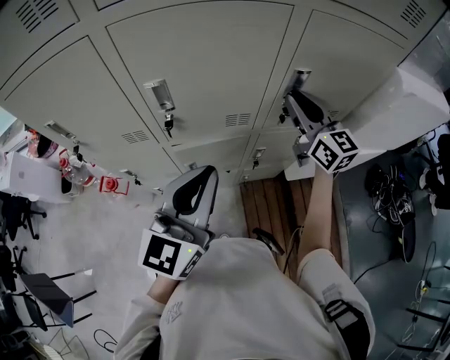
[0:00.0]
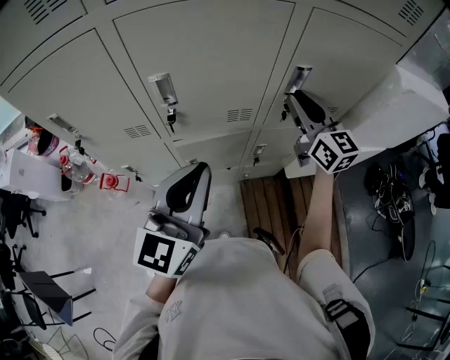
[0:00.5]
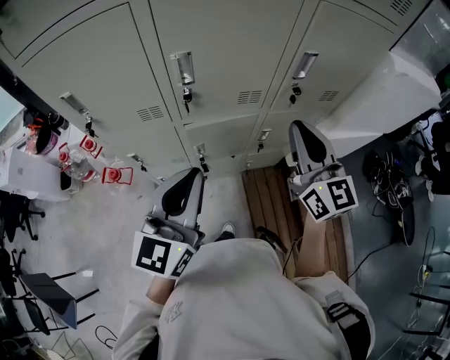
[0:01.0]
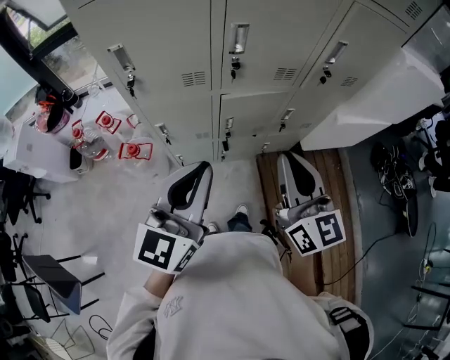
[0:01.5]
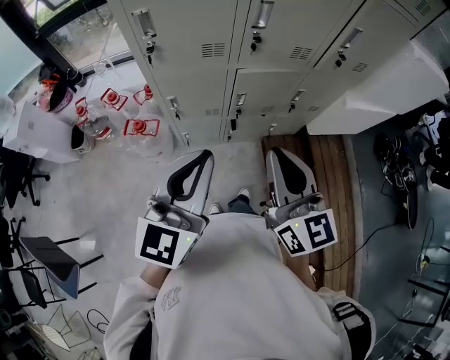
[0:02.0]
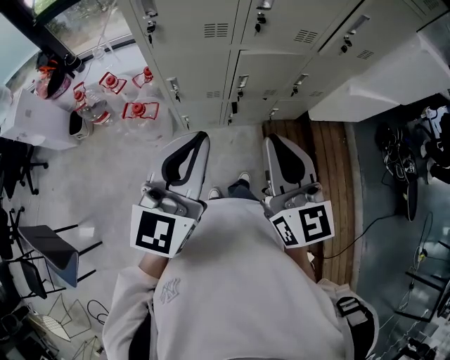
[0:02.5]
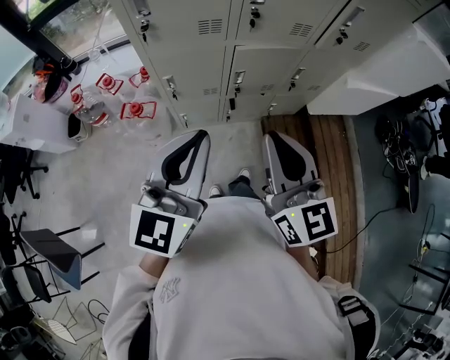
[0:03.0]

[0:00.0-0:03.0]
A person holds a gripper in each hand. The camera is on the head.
0:00.0 to 0:01.5: The left gripper shifts some 25 cm to the left and backward. Meanwhile the right gripper goes about 40 cm backward and to the left.
0:01.5 to 0:03.0: The left gripper shifts some 5 cm backward; the right gripper travels backward and to the left by roughly 10 cm.

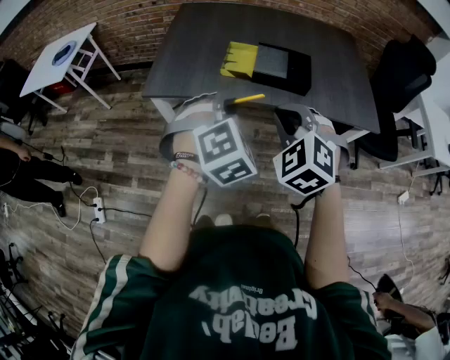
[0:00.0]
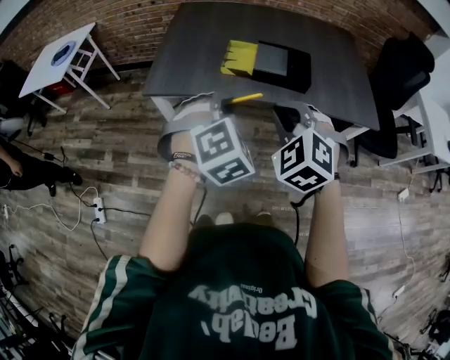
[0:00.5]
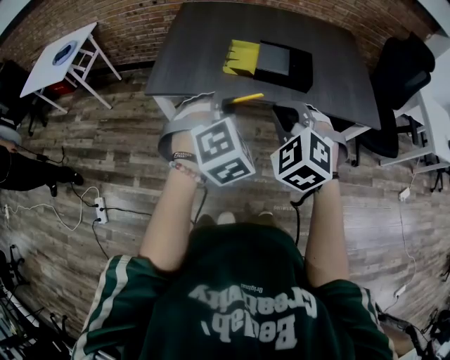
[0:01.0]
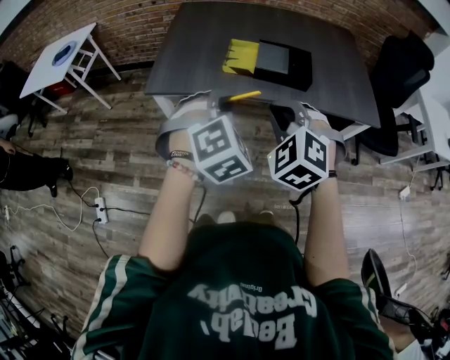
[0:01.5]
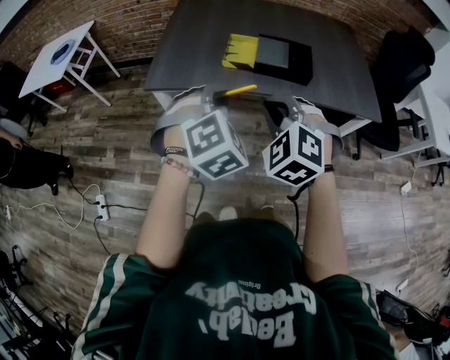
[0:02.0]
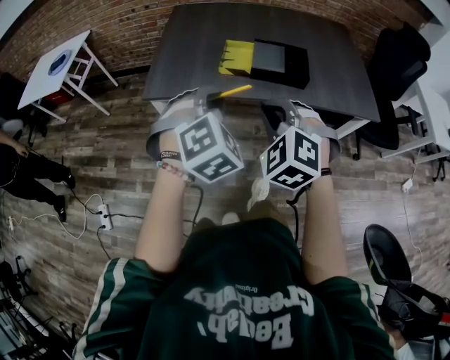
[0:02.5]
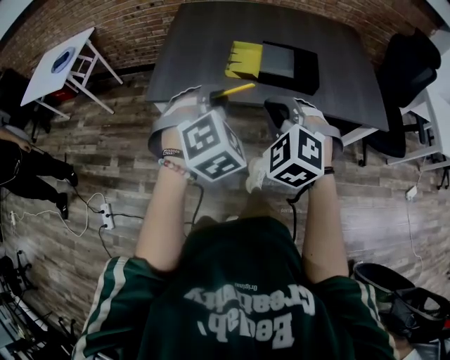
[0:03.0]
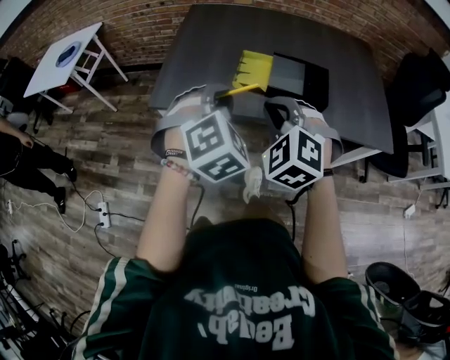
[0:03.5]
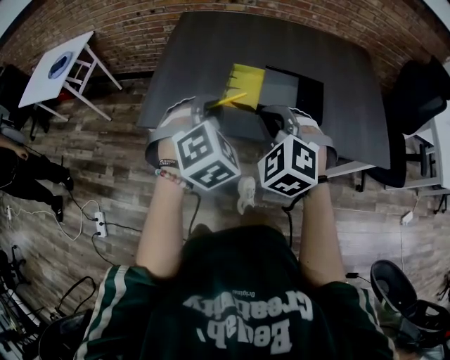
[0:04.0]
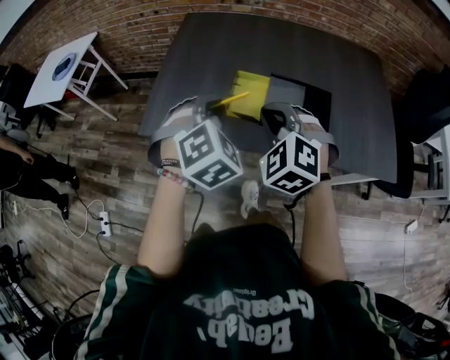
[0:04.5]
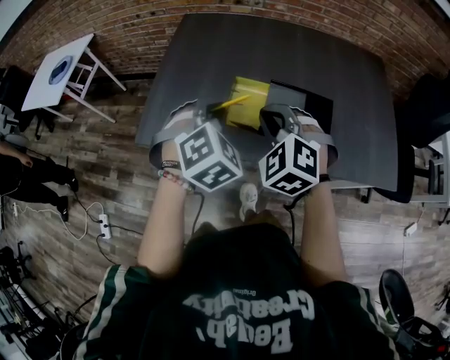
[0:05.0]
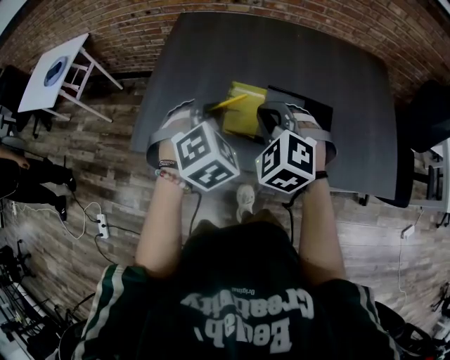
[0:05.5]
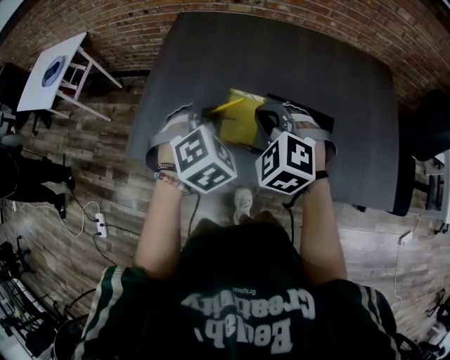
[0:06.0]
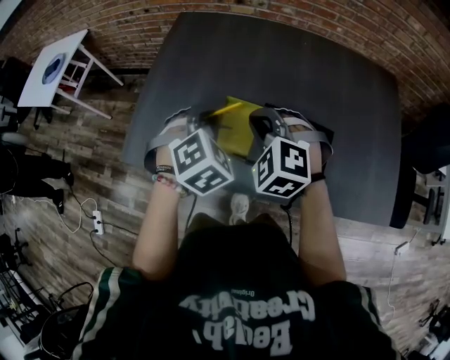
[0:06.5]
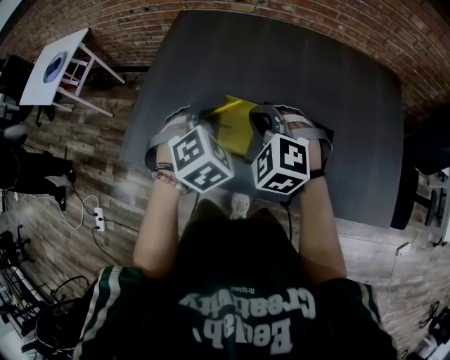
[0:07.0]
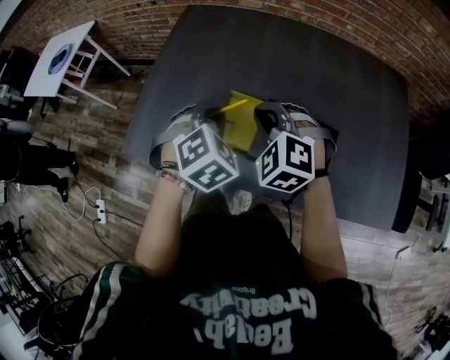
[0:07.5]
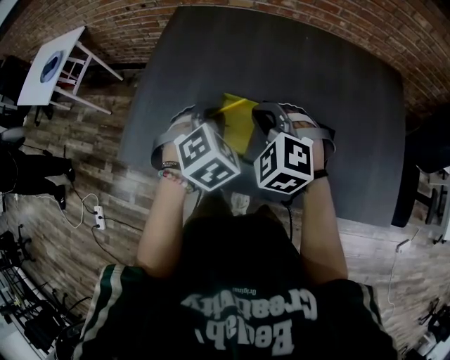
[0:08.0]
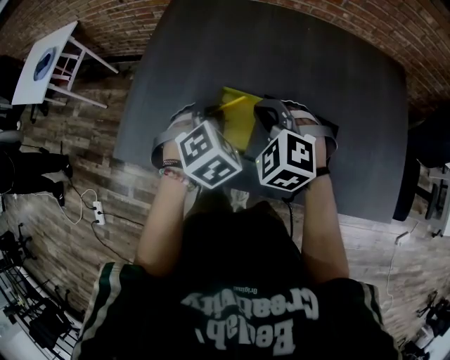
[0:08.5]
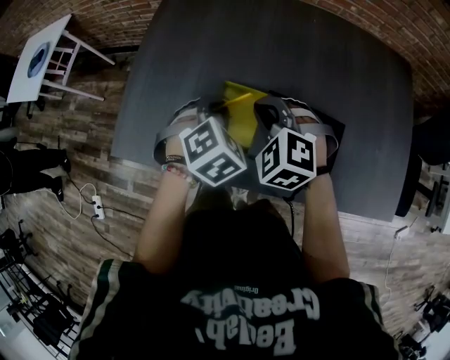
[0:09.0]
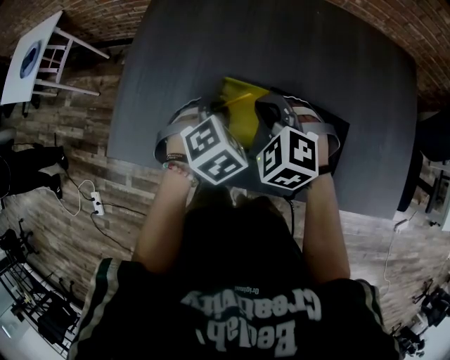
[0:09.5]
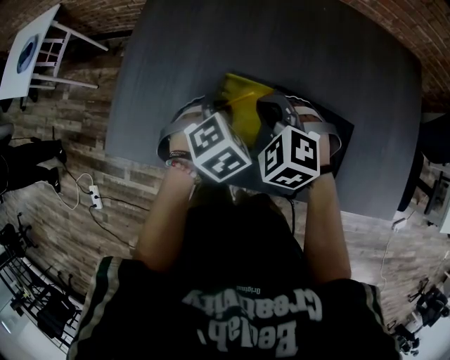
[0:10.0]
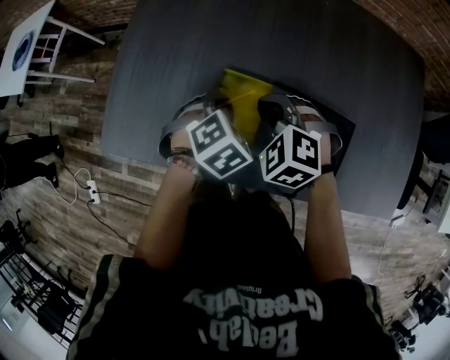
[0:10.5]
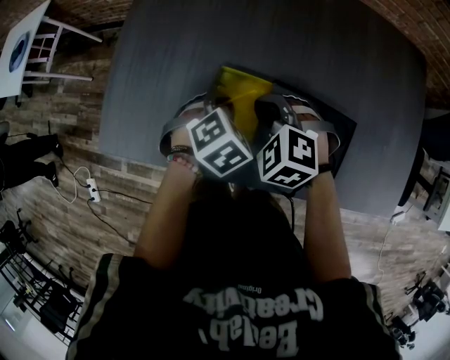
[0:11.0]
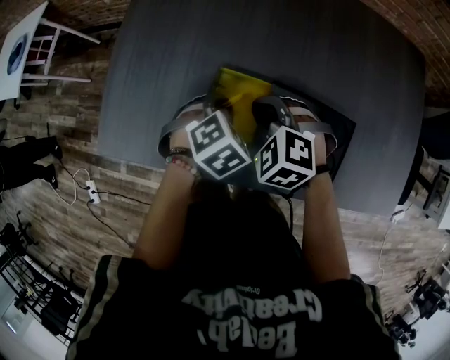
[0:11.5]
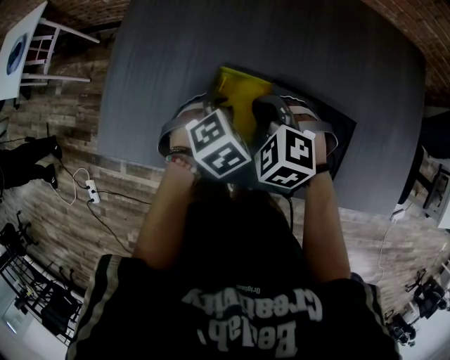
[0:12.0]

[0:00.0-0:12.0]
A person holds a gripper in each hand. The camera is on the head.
0:00.0 to 0:02.0: There are only small adjustments of the grippers.
0:02.0 to 0:04.0: The two grippers go some 20 cm forward.
0:04.0 to 0:06.0: The grippers both shift forward by roughly 20 cm.
0:06.0 to 0:08.0: Both grippers travel together forward, approximately 5 cm.
0:08.0 to 0:10.0: Both grippers move downward, some 10 cm.
0:10.0 to 0:12.0: There are only small adjustments of the grippers.

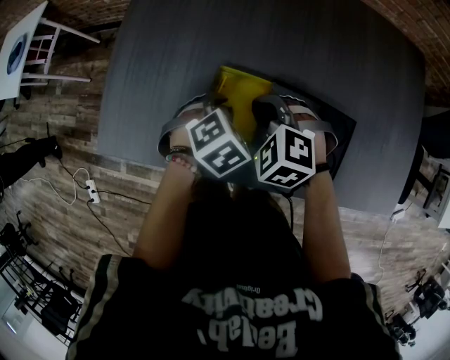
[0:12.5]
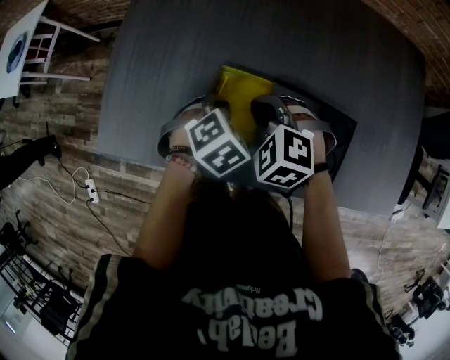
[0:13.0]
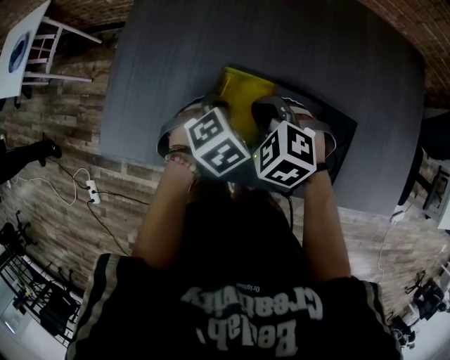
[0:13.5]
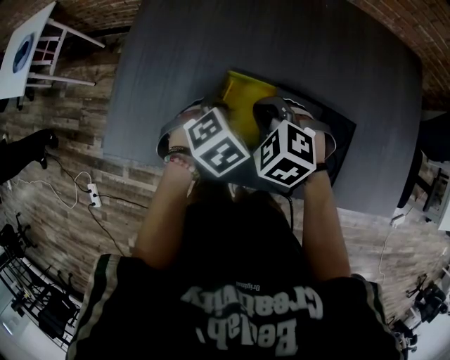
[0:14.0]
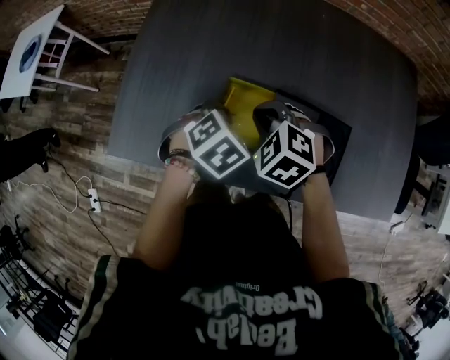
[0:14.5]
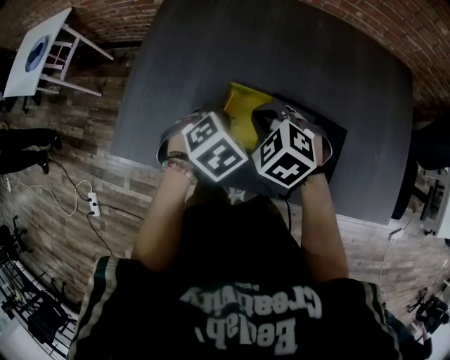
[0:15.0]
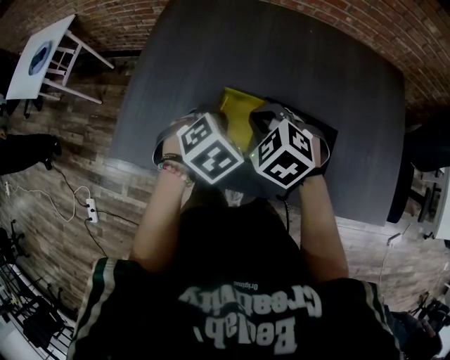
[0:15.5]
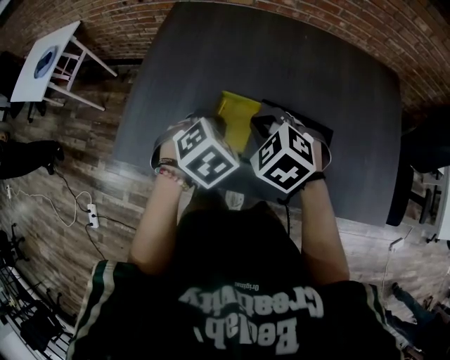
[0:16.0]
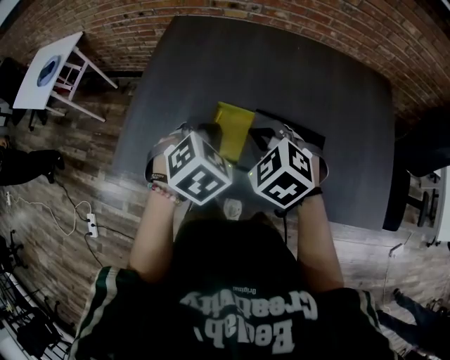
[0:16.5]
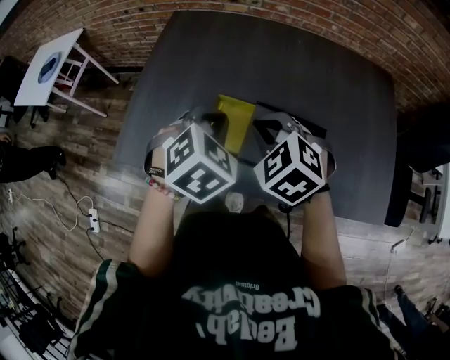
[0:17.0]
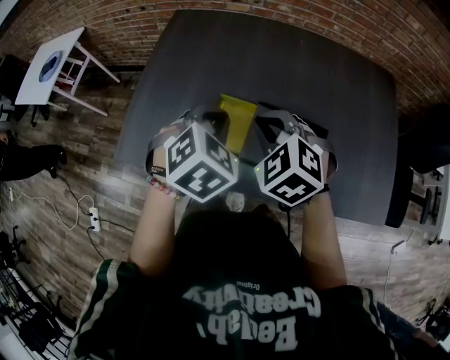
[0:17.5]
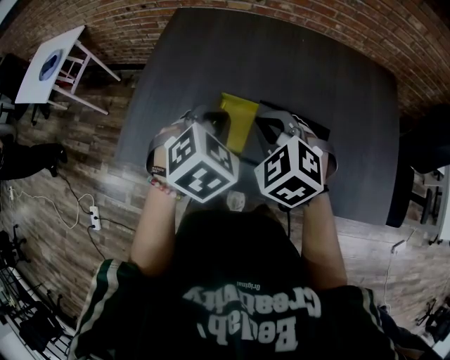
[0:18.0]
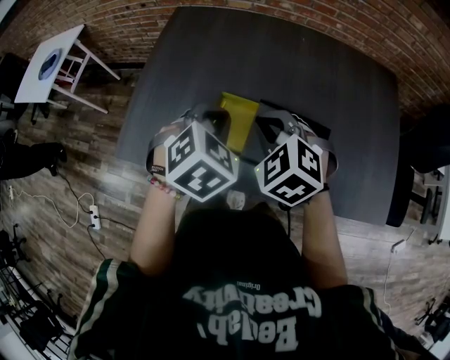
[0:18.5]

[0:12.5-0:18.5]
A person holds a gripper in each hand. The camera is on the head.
0:12.5 to 0:14.5: The left gripper moves roughly 5 cm.
0:14.5 to 0:16.5: The two grippers go roughly 15 cm upward and backward.
0:16.5 to 0:18.5: There are only small adjustments of the grippers.

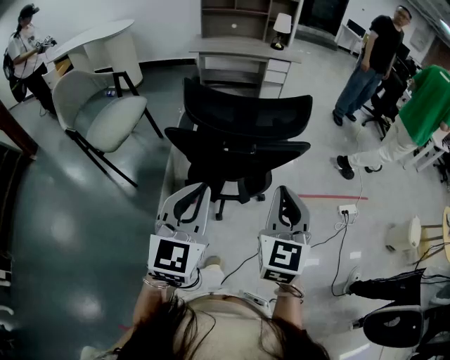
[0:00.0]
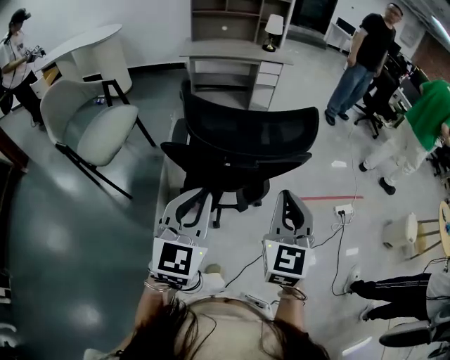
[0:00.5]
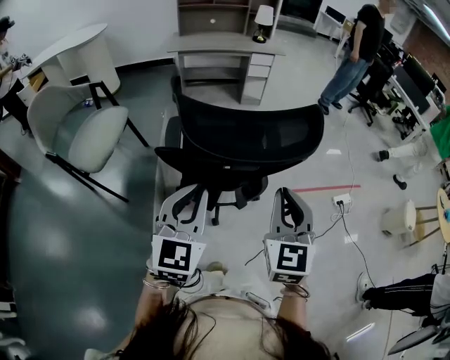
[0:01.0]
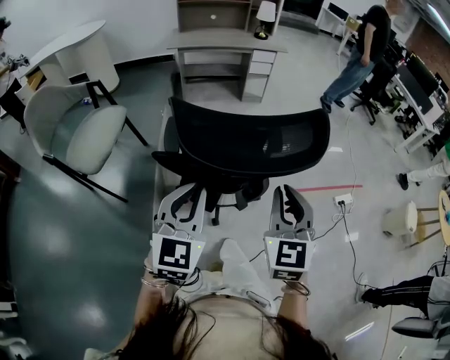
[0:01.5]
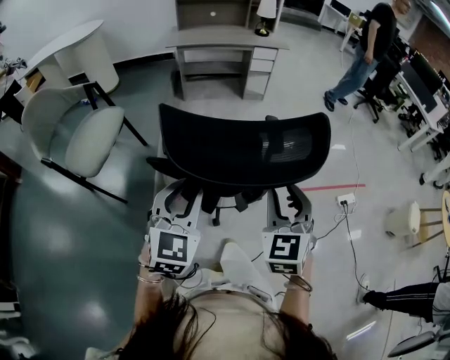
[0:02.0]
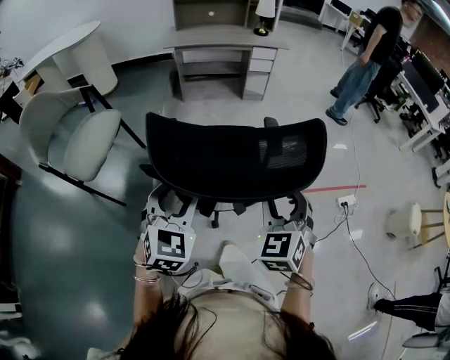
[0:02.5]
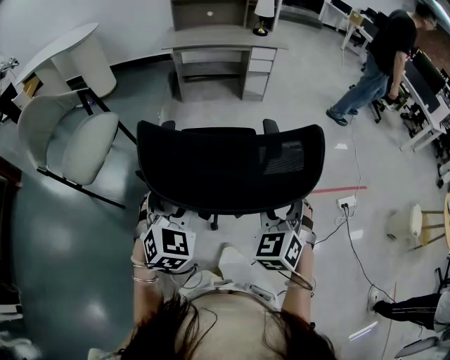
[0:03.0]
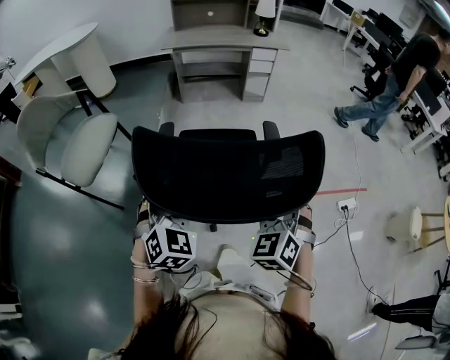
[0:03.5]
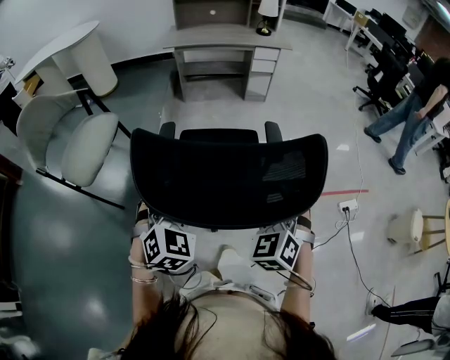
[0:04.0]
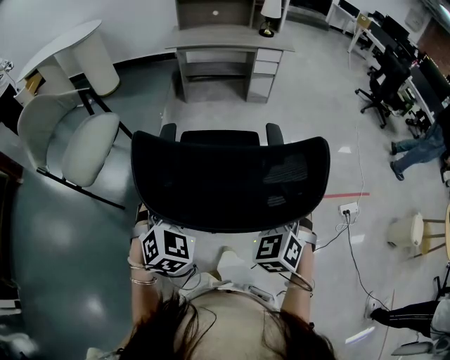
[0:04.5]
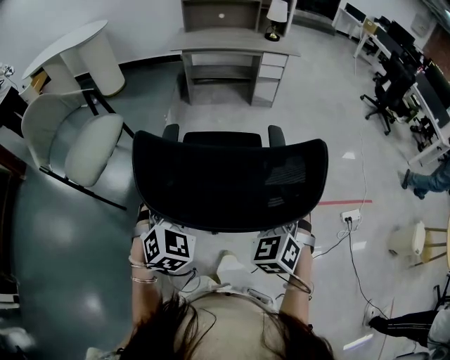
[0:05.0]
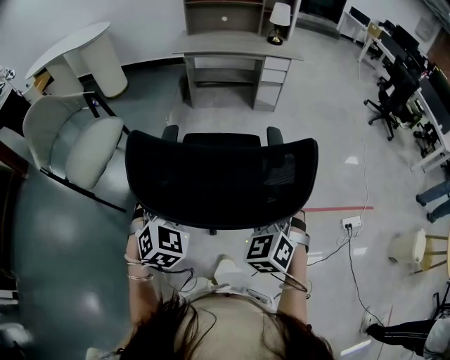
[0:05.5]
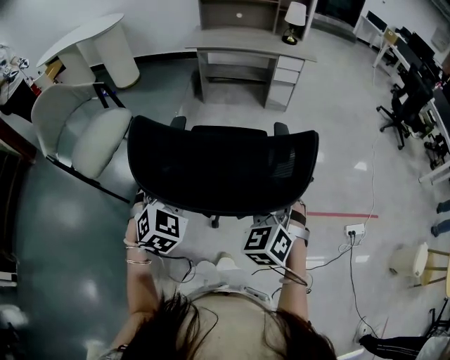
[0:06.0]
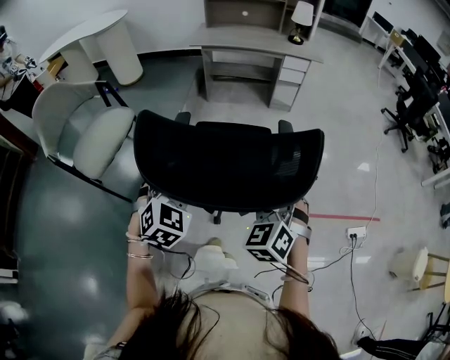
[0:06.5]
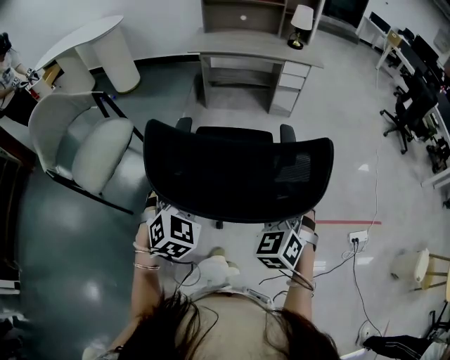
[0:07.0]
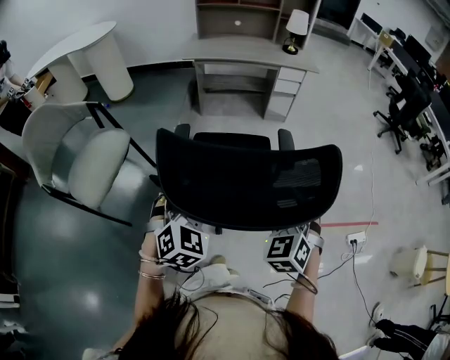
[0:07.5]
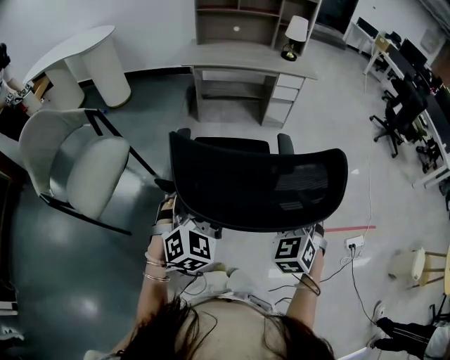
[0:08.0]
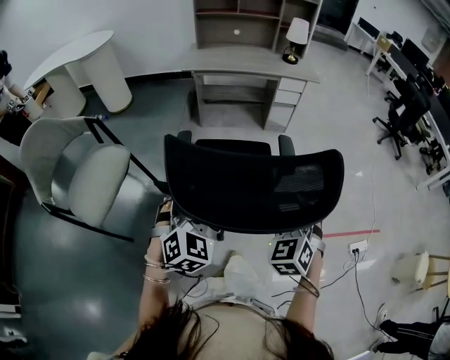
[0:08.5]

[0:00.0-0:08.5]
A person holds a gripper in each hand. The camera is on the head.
0:00.0 to 0:02.0: The grippers both shift forward and downward by about 15 cm.
0:02.0 to 0:04.0: Both grippers travel together forward and downward, approximately 10 cm. The left gripper swivels about 20 degrees, and opens up, while the right gripper changes its angle by approximately 20 degrees, and opens.
0:04.0 to 0:06.5: The grippers both shift forward by some 10 cm.
0:06.5 to 0:08.5: Both grippers move forward, some 10 cm.
